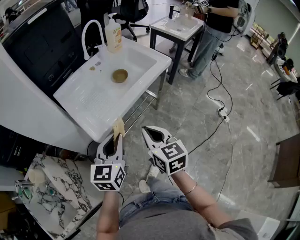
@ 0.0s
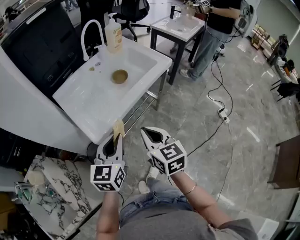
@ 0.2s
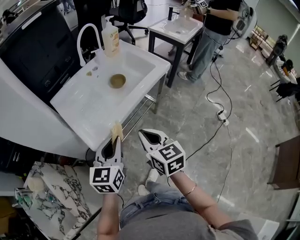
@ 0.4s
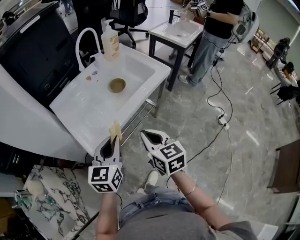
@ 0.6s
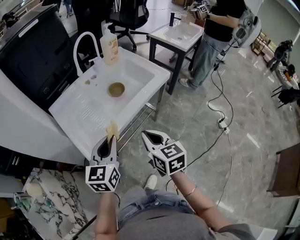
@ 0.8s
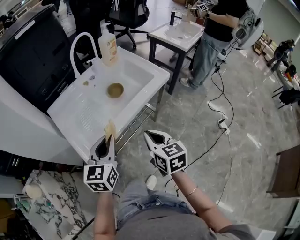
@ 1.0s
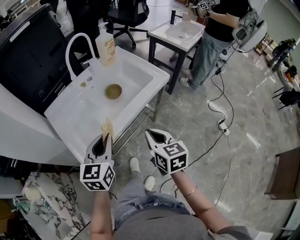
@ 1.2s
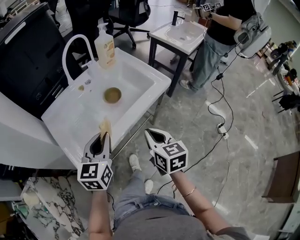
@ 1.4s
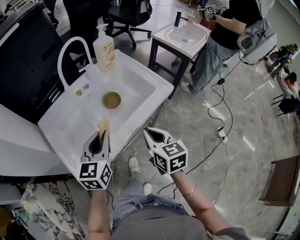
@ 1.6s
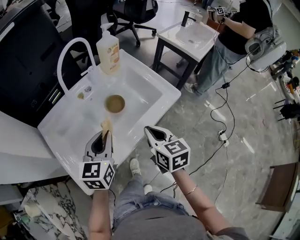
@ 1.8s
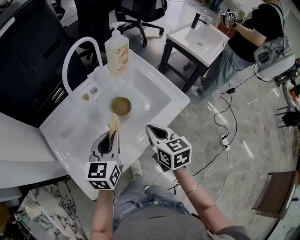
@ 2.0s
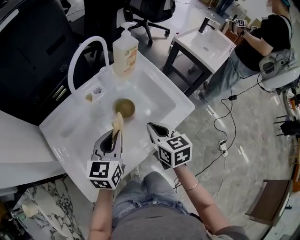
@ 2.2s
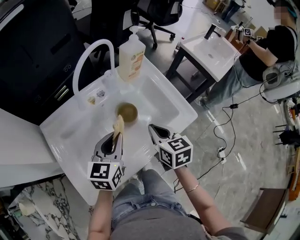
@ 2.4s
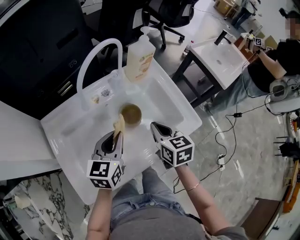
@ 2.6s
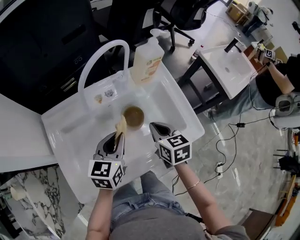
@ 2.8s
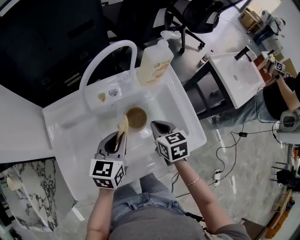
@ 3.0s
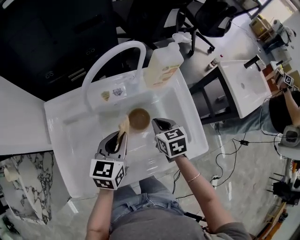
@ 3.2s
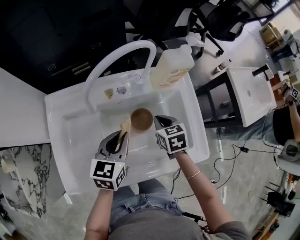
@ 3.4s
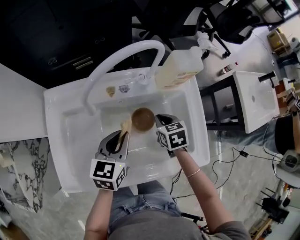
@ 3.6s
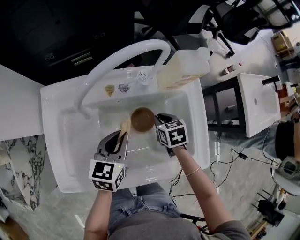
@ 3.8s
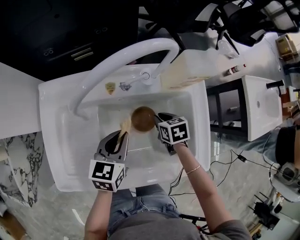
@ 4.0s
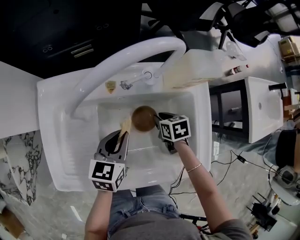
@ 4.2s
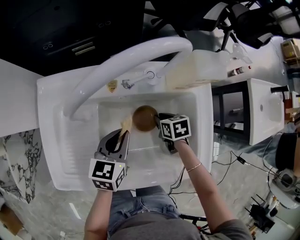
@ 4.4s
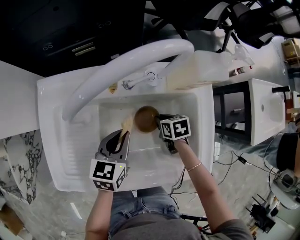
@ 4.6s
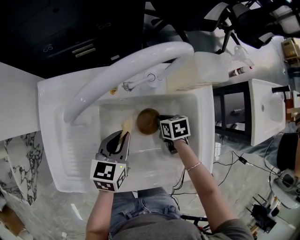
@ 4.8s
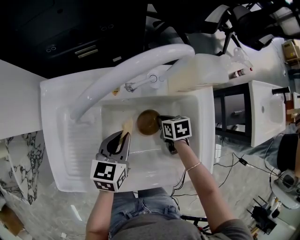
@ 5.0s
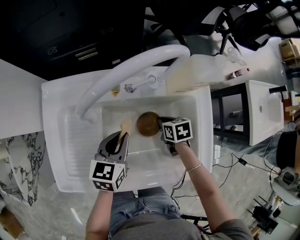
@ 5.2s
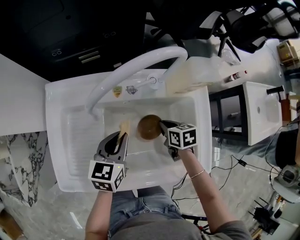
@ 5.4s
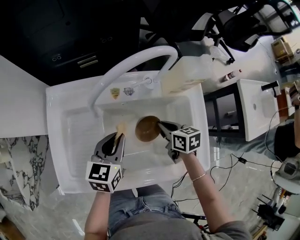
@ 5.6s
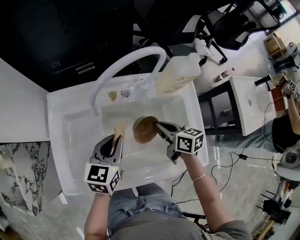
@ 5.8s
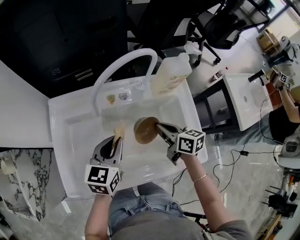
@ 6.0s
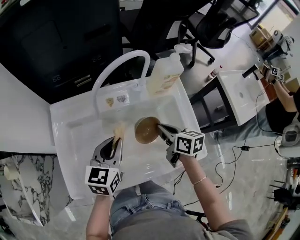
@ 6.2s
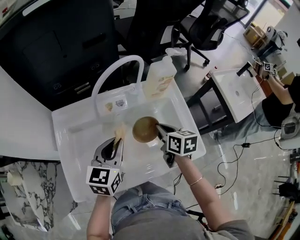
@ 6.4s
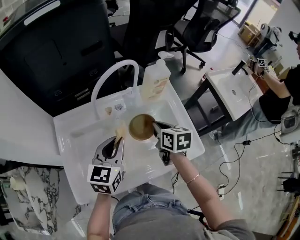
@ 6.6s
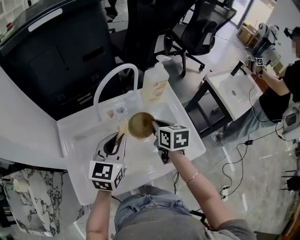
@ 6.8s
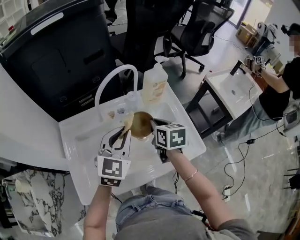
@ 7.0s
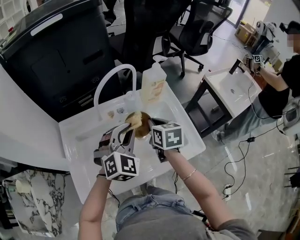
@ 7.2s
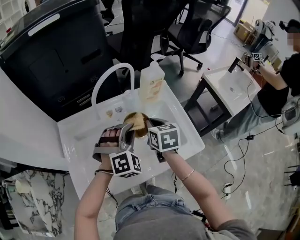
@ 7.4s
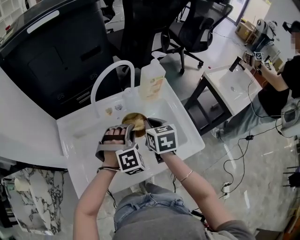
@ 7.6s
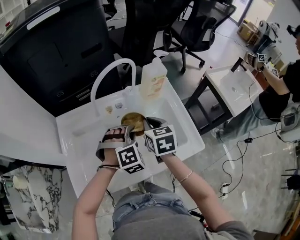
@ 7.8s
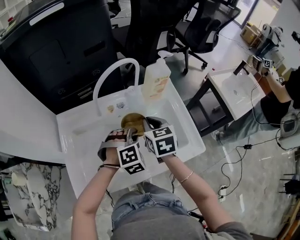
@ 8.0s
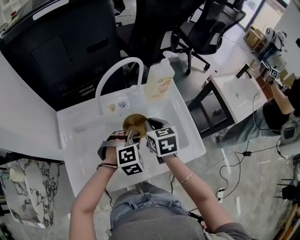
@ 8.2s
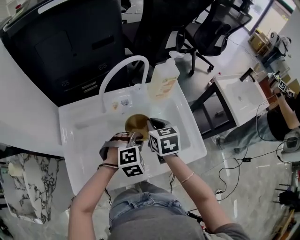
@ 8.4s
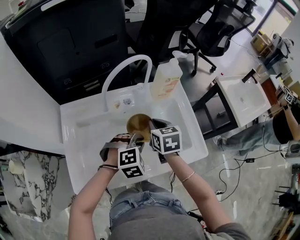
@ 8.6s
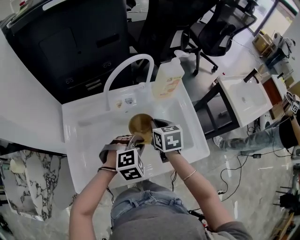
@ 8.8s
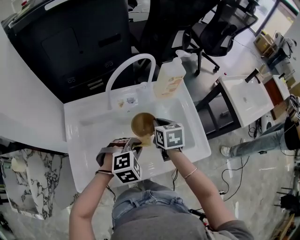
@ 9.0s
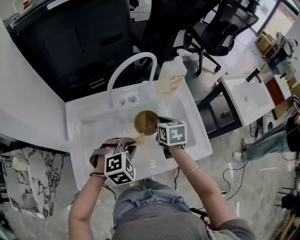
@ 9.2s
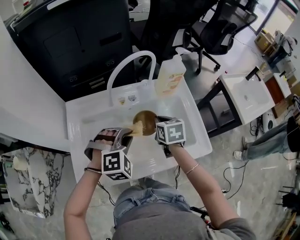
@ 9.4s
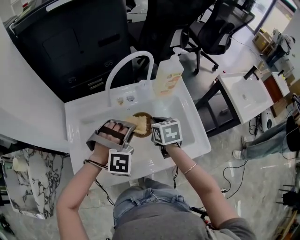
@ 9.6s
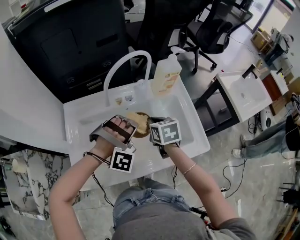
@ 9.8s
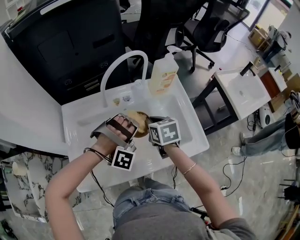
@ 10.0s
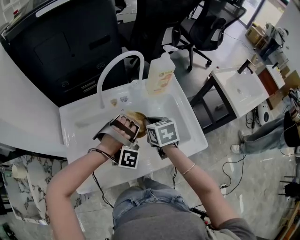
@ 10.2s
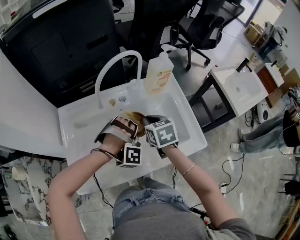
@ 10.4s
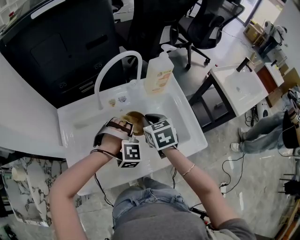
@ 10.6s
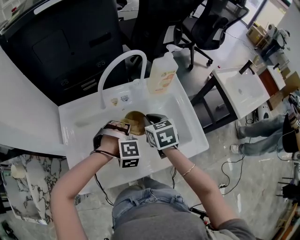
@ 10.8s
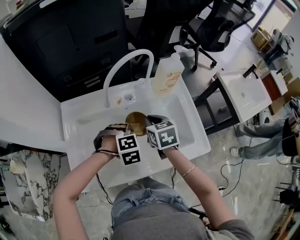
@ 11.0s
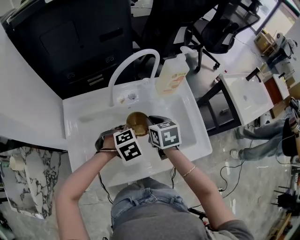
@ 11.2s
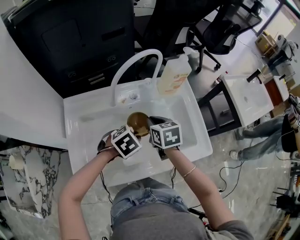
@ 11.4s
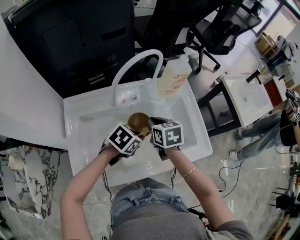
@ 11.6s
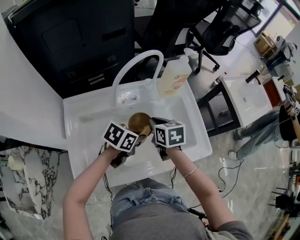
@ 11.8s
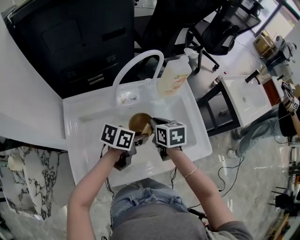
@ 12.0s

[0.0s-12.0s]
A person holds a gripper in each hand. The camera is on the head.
0.0s to 1.6s: The left gripper moves forward, approximately 25 cm, while the right gripper shifts roughly 25 cm forward and to the right.
1.6s to 3.0s: The left gripper shifts approximately 15 cm forward; the right gripper heads forward, covering roughly 25 cm, and swivels some 30 degrees.
3.0s to 4.4s: The right gripper goes roughly 20 cm downward and forward, and rotates roughly 30 degrees, while the left gripper moves downward, about 10 cm.
4.4s to 6.0s: The right gripper goes some 15 cm upward, and tilts its fingers approximately 40 degrees upward, while the left gripper goes roughly 10 cm upward.
6.0s to 7.6s: The right gripper heads upward, covering roughly 10 cm, and changes its angle by some 30 degrees, while the left gripper travels to the right by about 10 cm, moves about 10 cm upward and comes back, and twists some 80 degrees clockwise, seen from behind.
7.6s to 9.0s: The left gripper travels backward and downward by roughly 10 cm, and rotates about 30 degrees; the right gripper heads downward, covering roughly 5 cm.
9.0s to 10.4s: The left gripper is displaced forward by some 5 cm, and rotates around the line of its fingers by some 60 degrees, clockwise from behind.
10.4s to 12.0s: The left gripper rotates around the line of its fingers by some 120 degrees, counterclockwise from behind.

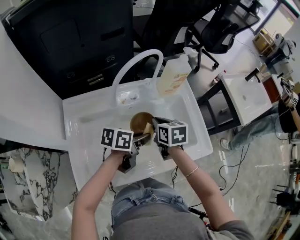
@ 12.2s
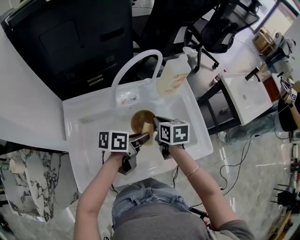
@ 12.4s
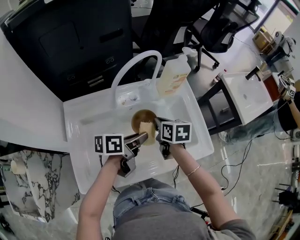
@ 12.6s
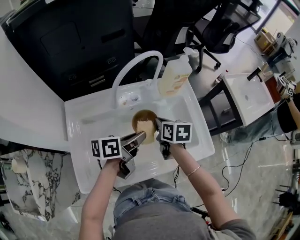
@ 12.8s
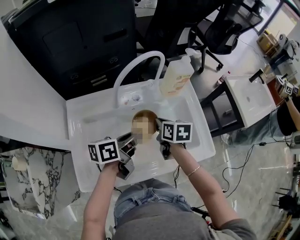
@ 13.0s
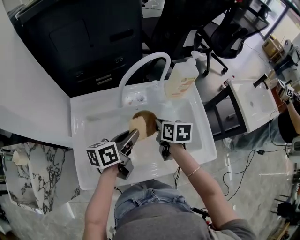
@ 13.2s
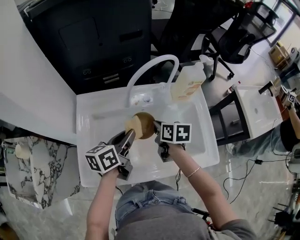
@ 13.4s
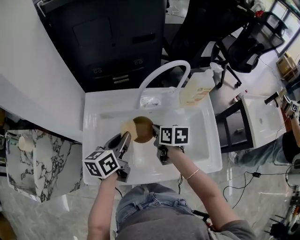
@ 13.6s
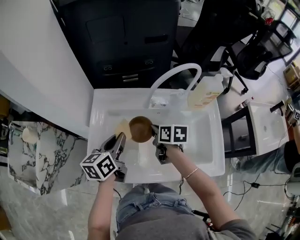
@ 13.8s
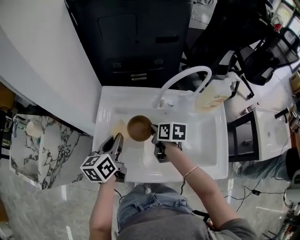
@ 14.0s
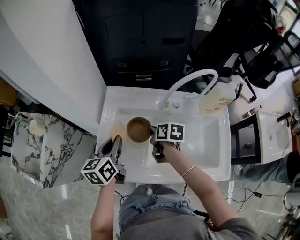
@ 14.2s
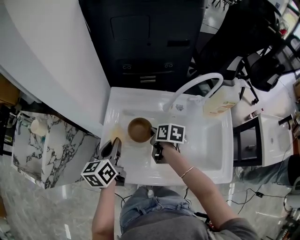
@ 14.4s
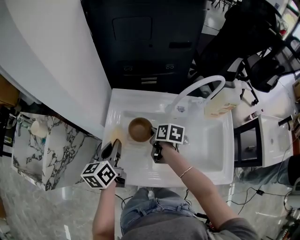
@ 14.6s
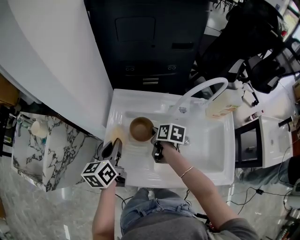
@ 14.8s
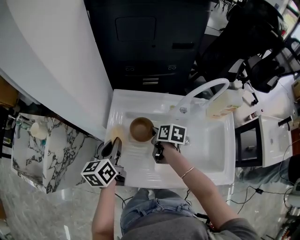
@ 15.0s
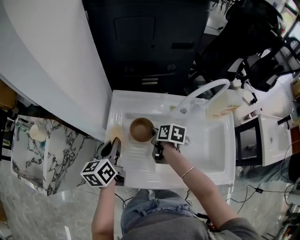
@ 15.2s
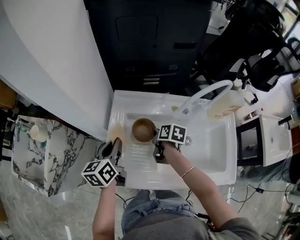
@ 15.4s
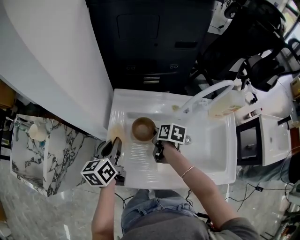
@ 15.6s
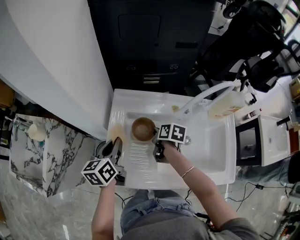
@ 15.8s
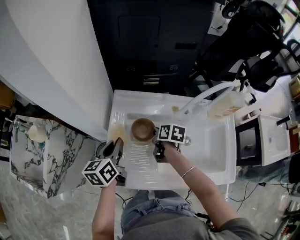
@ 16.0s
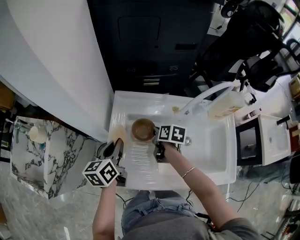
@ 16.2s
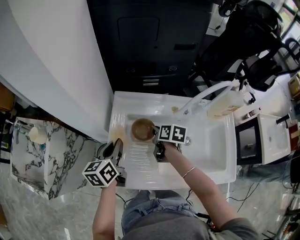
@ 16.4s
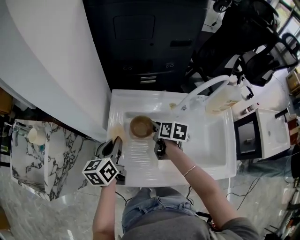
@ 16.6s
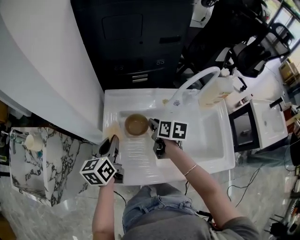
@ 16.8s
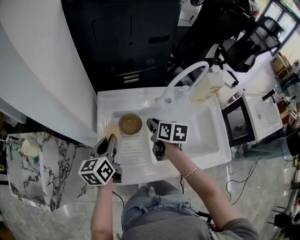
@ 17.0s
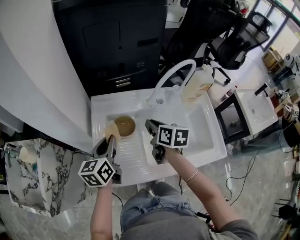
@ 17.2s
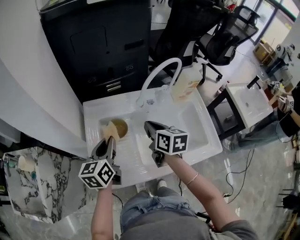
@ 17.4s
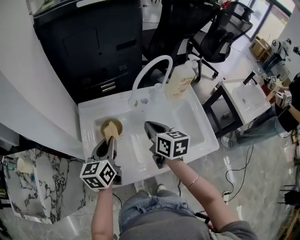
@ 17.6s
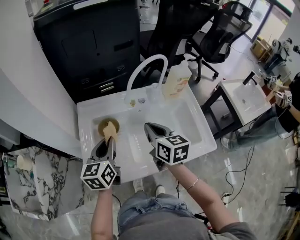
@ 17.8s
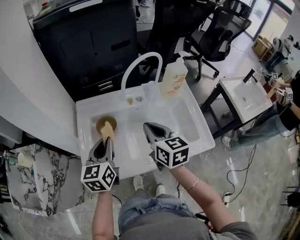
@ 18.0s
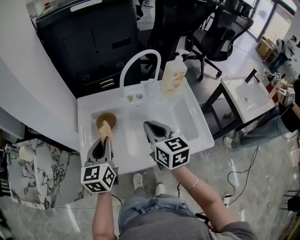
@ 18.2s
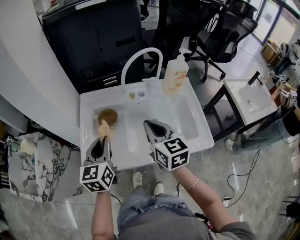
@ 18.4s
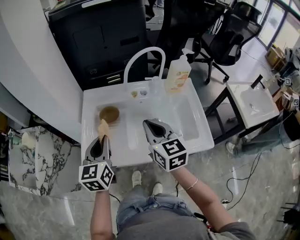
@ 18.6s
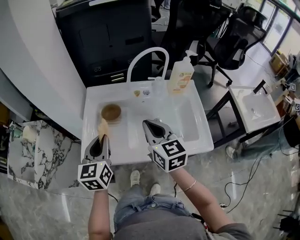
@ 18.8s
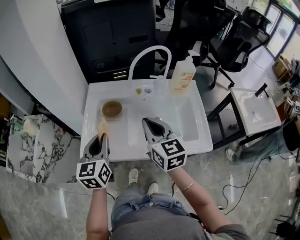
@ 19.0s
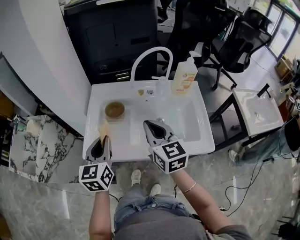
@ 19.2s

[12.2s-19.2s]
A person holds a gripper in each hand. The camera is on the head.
12.2s to 13.6s: The left gripper ends up some 15 cm from where it was, and changes its angle by approximately 50 degrees; the right gripper moves approximately 10 cm.
13.6s to 15.0s: The left gripper shifts about 15 cm to the left, and swivels approximately 20 degrees. The right gripper is displaced to the left and forward by some 15 cm.
15.0s to 16.4s: There are only small adjustments of the grippers.
16.4s to 17.8s: The left gripper heads to the right, covering about 10 cm, and turns by approximately 20 degrees; the right gripper heads upward, backward and to the right, covering about 25 cm, and changes its angle by approximately 30 degrees.
17.8s to 19.2s: The grippers both shift backward by about 10 cm. The right gripper rotates roughly 20 degrees.

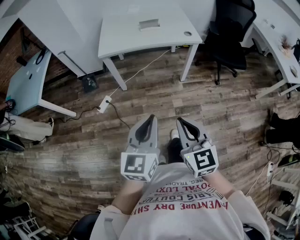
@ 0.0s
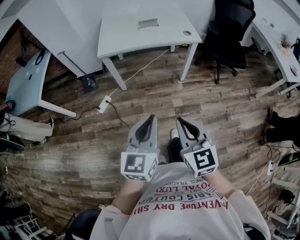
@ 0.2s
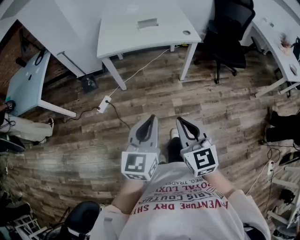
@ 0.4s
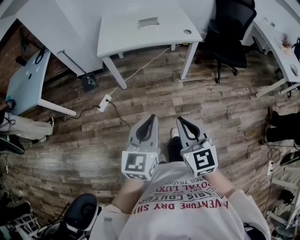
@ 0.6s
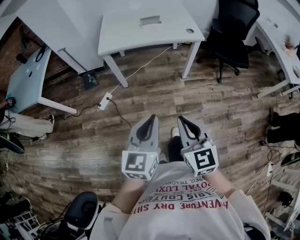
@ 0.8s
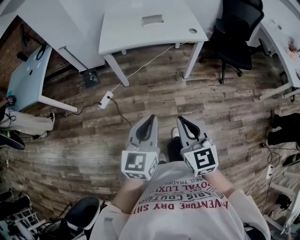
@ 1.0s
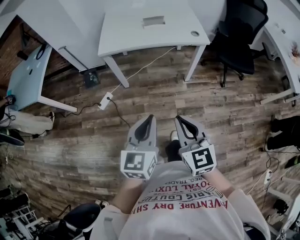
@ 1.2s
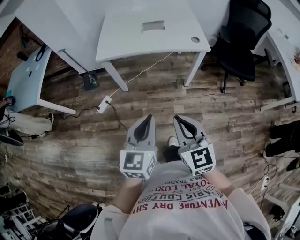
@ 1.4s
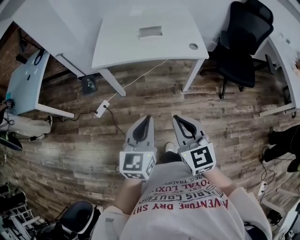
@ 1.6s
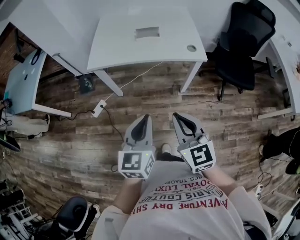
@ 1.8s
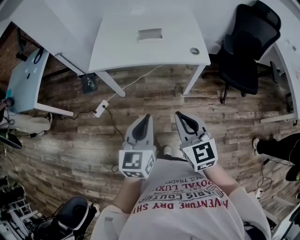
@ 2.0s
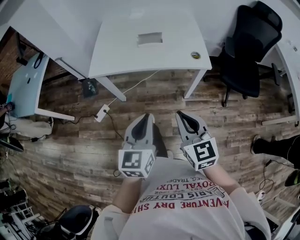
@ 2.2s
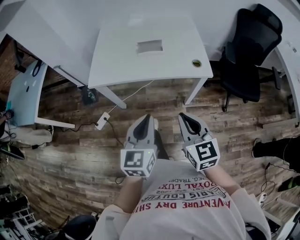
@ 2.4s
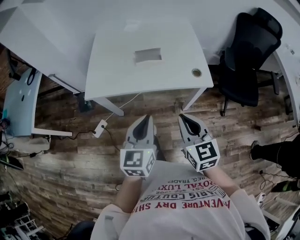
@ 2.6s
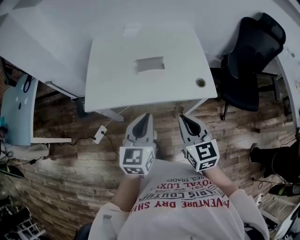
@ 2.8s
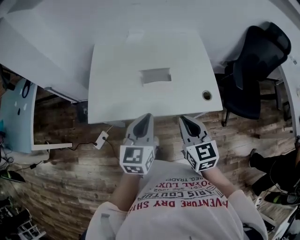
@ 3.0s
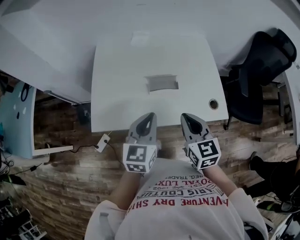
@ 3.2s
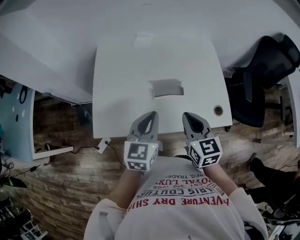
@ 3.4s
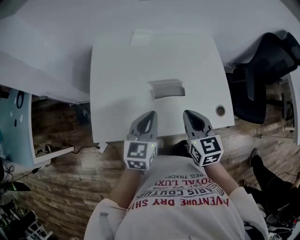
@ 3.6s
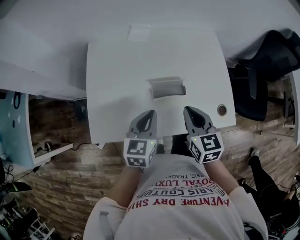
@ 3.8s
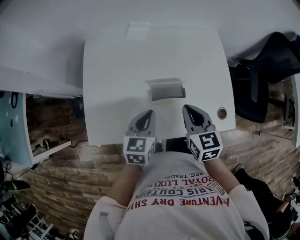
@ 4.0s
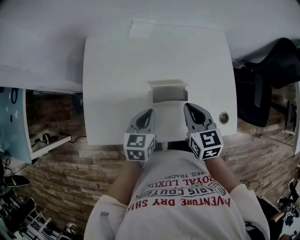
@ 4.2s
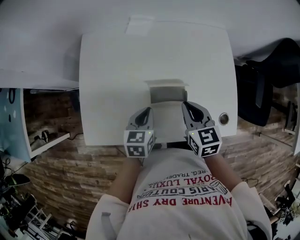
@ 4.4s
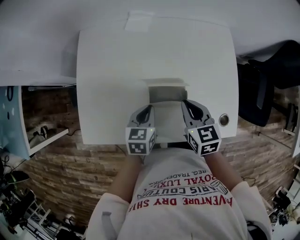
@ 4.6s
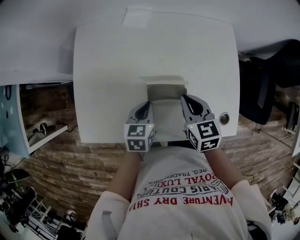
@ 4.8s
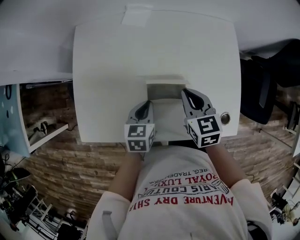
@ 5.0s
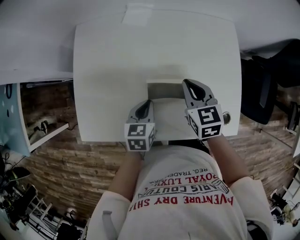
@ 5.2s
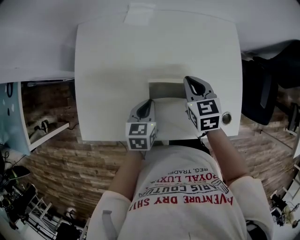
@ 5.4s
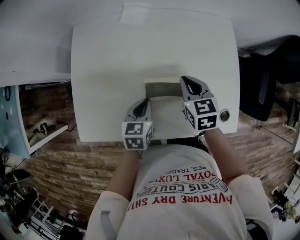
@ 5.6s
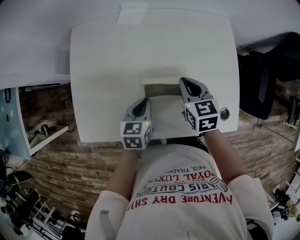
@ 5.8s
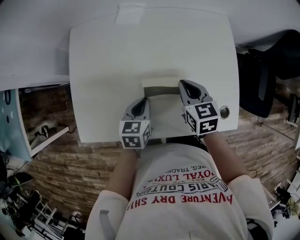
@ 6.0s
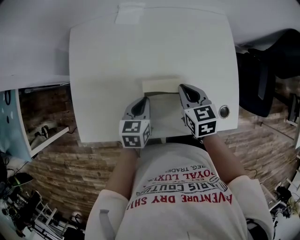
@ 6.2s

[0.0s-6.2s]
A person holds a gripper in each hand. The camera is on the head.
0.0s to 1.6s: The grippers both shift forward by some 15 cm.
1.6s to 3.2s: The two grippers travel together, forward, some 50 cm.
3.2s to 4.6s: The left gripper travels downward and forward by about 25 cm, and turns by some 30 degrees; the right gripper is displaced forward and downward by roughly 20 cm.
